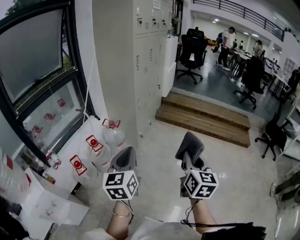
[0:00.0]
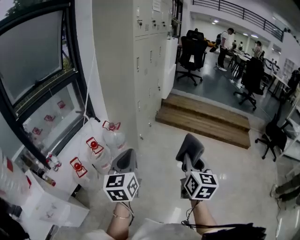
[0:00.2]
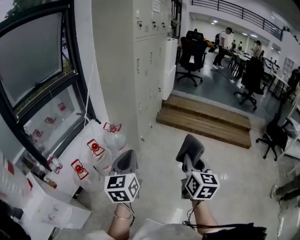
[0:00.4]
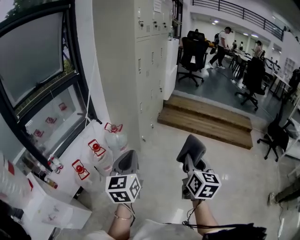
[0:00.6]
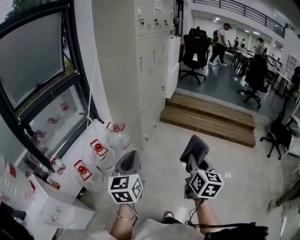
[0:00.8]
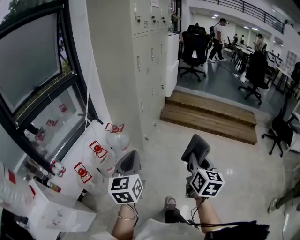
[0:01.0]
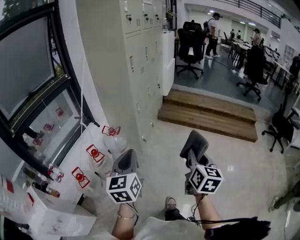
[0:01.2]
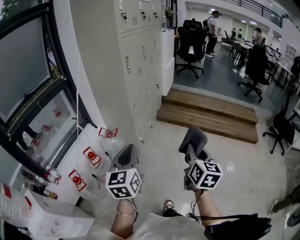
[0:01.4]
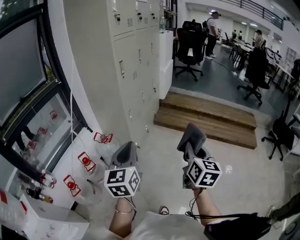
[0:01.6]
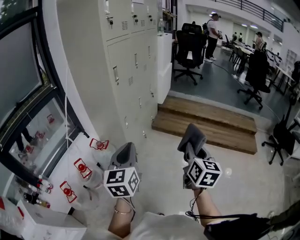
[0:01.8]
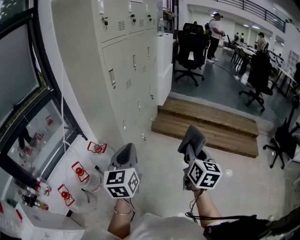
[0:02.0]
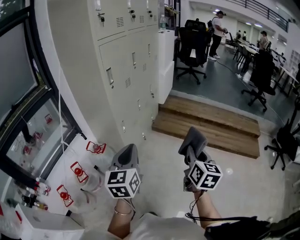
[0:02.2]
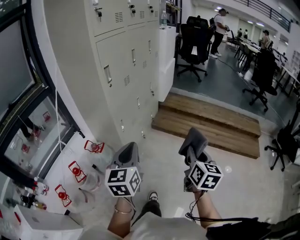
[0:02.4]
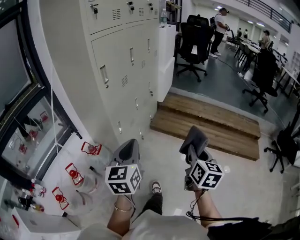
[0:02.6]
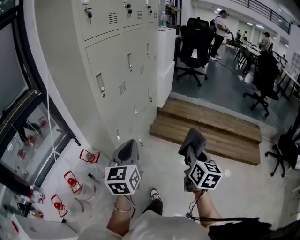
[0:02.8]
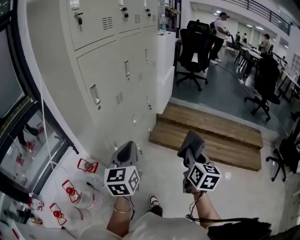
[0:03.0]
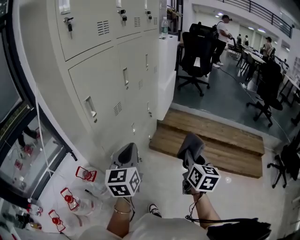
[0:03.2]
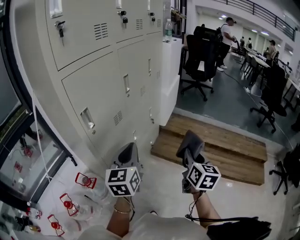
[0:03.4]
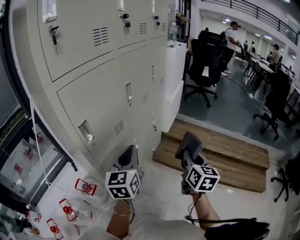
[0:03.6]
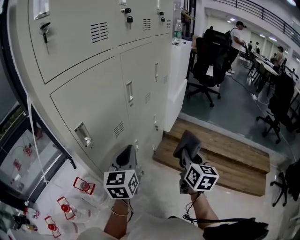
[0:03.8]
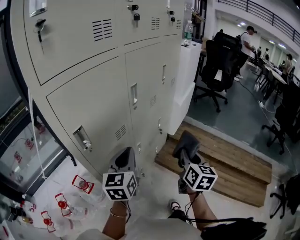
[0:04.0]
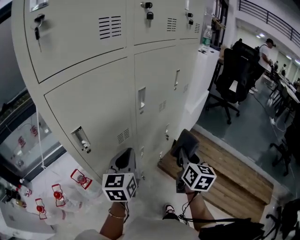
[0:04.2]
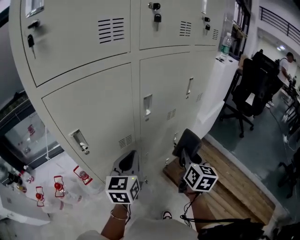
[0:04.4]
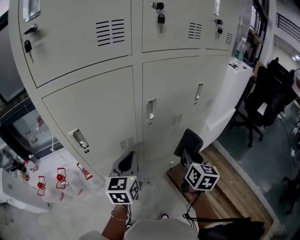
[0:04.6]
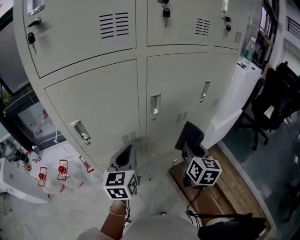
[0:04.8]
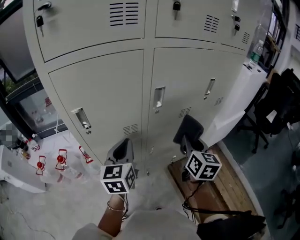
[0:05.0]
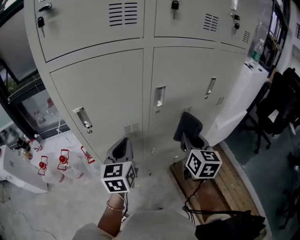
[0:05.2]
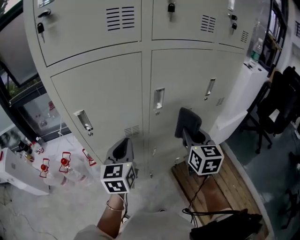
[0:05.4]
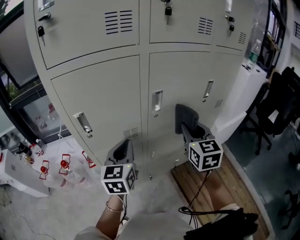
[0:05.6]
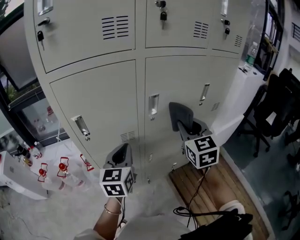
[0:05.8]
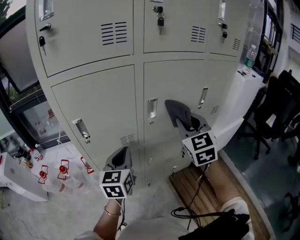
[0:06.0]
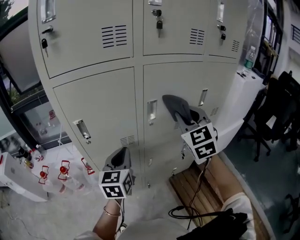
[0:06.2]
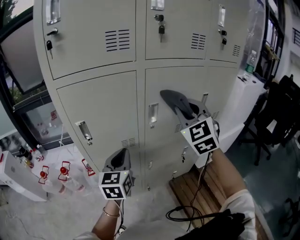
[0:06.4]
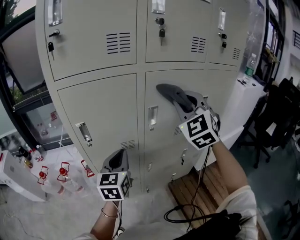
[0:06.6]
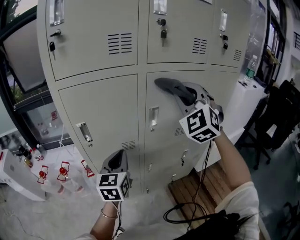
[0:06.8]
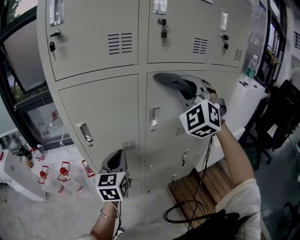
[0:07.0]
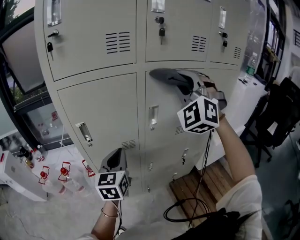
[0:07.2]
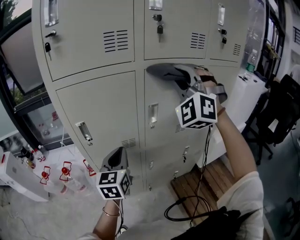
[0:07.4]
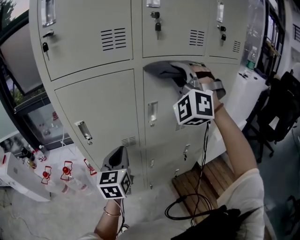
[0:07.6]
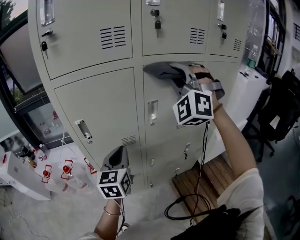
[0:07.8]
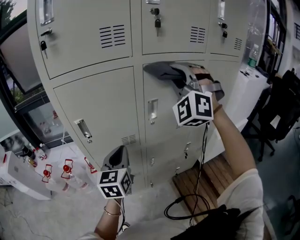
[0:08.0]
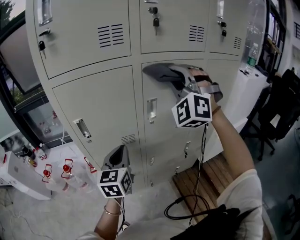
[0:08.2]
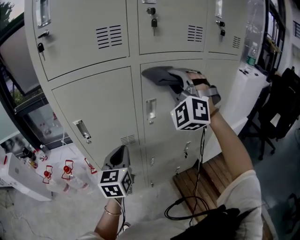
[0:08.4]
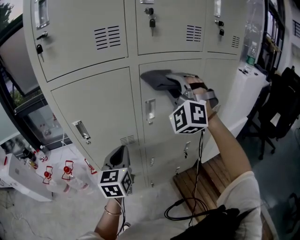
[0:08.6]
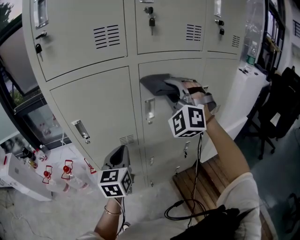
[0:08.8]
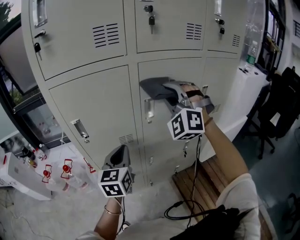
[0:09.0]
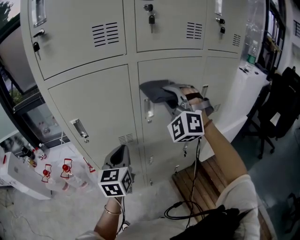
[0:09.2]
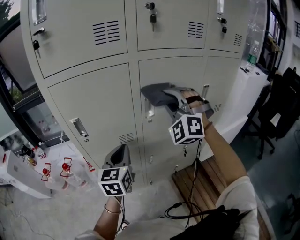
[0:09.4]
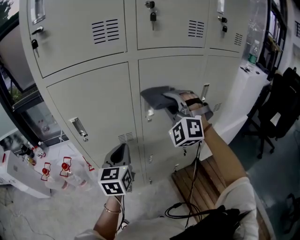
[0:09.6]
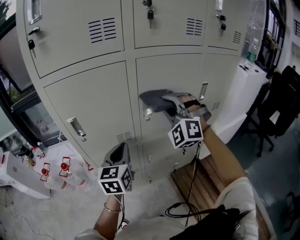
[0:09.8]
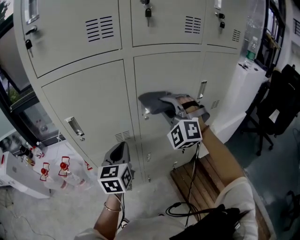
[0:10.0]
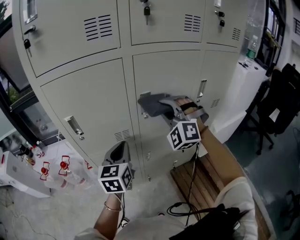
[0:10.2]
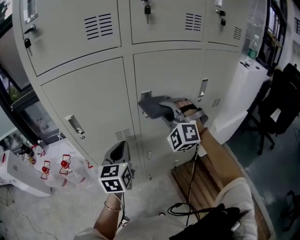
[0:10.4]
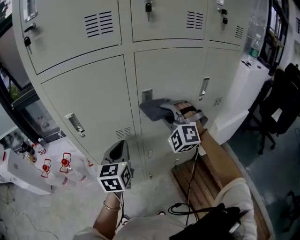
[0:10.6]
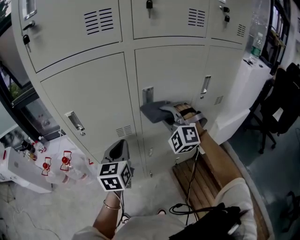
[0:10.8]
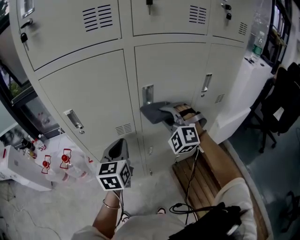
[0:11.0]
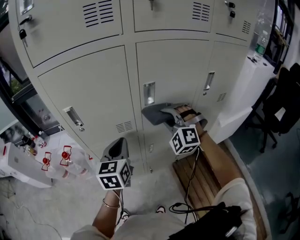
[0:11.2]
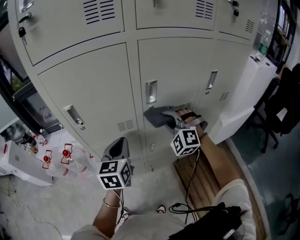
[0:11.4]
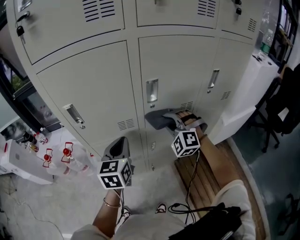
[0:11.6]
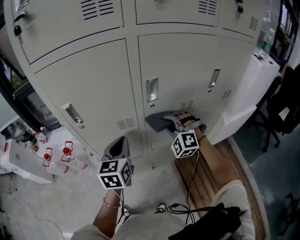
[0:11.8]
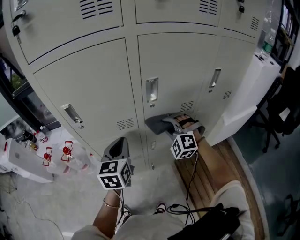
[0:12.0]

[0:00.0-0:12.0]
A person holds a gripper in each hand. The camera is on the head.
0.0 to 1.6 s: Both grippers travel together forward, about 25 cm.
1.6 to 3.0 s: Both grippers move forward, some 35 cm.
3.0 to 4.4 s: The left gripper changes place by some 30 cm, and swivels approximately 20 degrees, while the right gripper moves approximately 40 cm, and rotates roughly 30 degrees.
4.4 to 6.0 s: The right gripper heads upward and forward, covering roughly 15 cm, and rotates around the line of its fingers by roughly 40 degrees, counterclockwise from behind.
6.0 to 7.6 s: The right gripper shifts roughly 15 cm upward, and twists some 60 degrees counterclockwise, seen from behind.
7.6 to 9.0 s: The right gripper shifts about 10 cm downward.
9.0 to 10.4 s: The right gripper goes approximately 10 cm downward.
10.4 to 12.0 s: The right gripper goes roughly 20 cm downward.

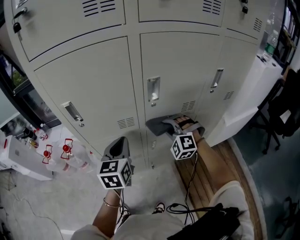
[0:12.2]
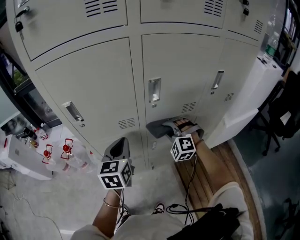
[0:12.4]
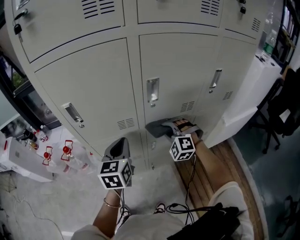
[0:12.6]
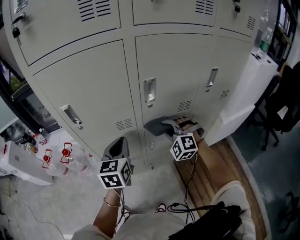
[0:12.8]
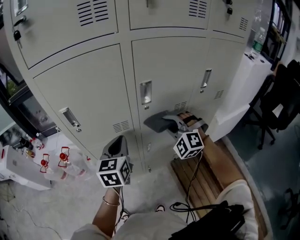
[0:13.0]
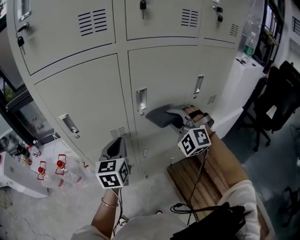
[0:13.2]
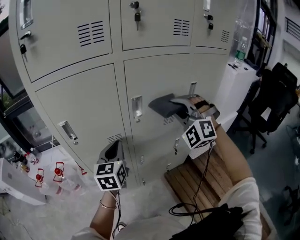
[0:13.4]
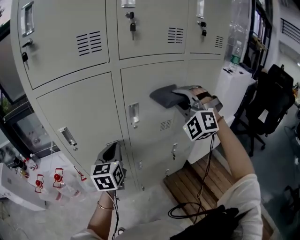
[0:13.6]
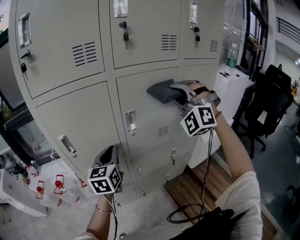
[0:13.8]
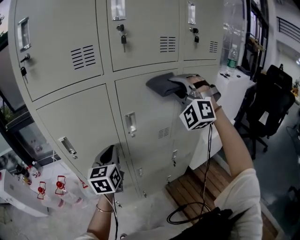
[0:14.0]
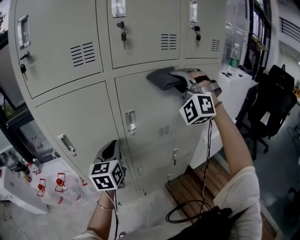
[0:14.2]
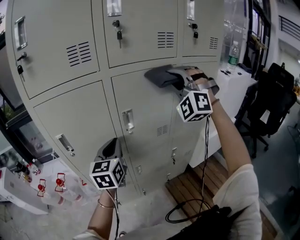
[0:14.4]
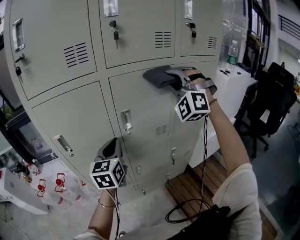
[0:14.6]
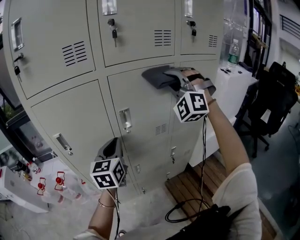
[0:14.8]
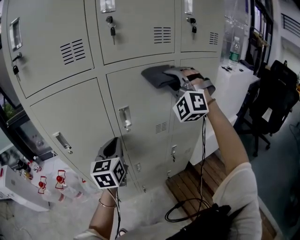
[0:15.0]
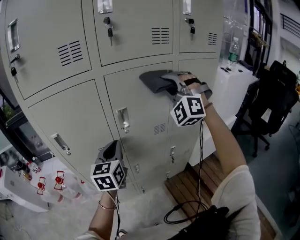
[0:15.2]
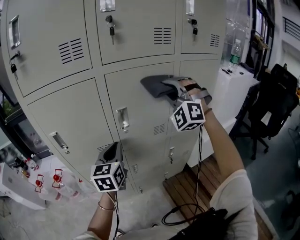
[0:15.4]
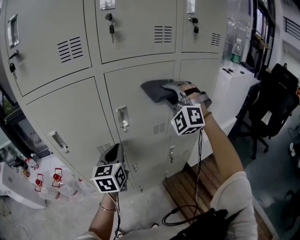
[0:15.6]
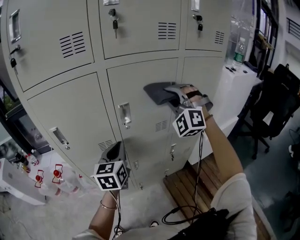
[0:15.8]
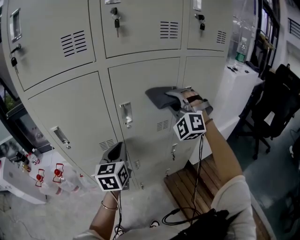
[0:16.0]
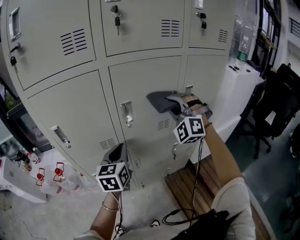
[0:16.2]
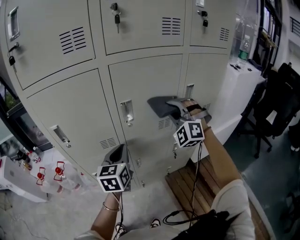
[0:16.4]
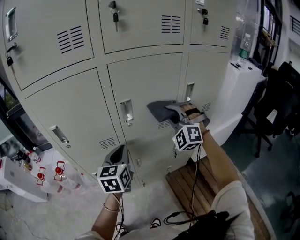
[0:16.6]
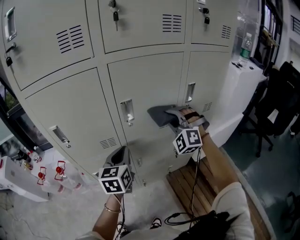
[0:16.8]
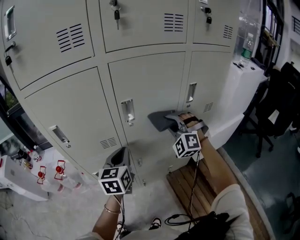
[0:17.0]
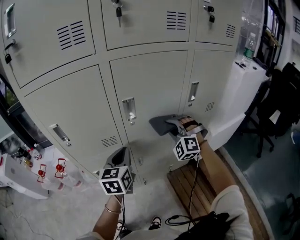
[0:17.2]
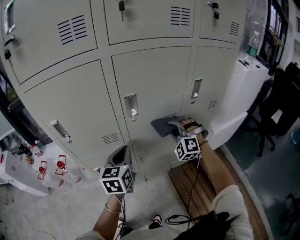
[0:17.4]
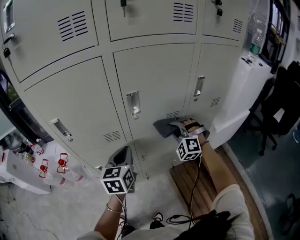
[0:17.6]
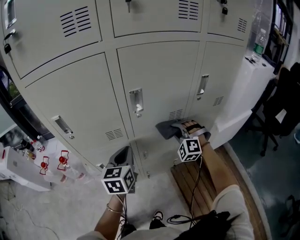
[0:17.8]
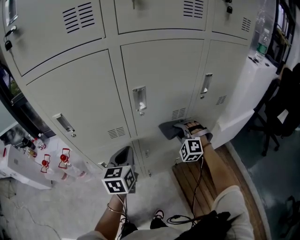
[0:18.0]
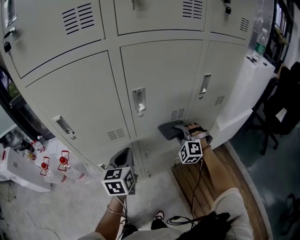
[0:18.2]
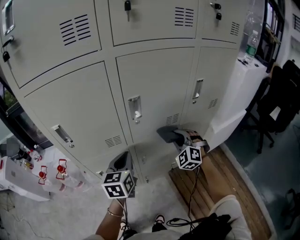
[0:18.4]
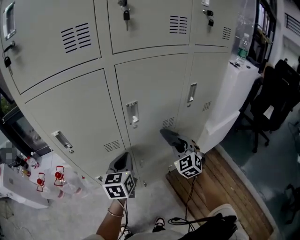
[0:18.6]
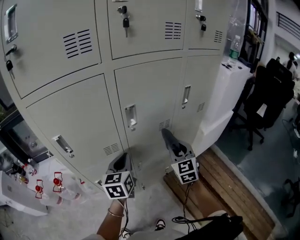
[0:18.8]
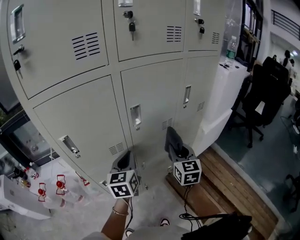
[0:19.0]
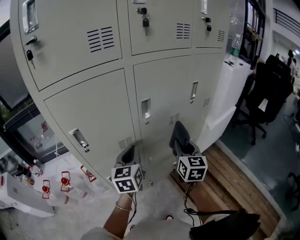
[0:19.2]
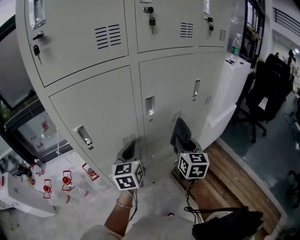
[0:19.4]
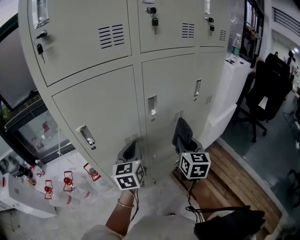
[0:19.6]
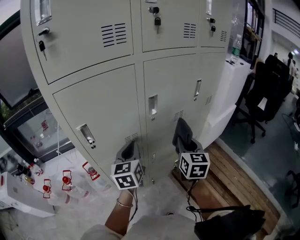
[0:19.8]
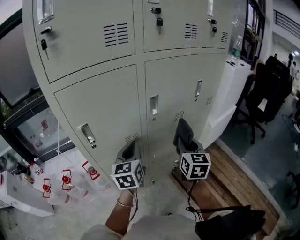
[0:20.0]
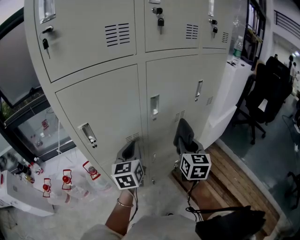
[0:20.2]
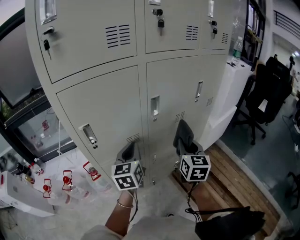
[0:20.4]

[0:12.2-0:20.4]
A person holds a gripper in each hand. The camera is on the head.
12.2 to 13.8 s: The right gripper moves upward, roughly 35 cm, and turns by some 30 degrees, while the left gripper is displaced upward by about 10 cm.
13.8 to 15.4 s: The right gripper changes place by approximately 5 cm. Meanwhile the left gripper goes some 5 cm to the right.
15.4 to 17.2 s: The right gripper moves downward, some 25 cm, and turns by approximately 20 degrees; the left gripper is displaced downward by roughly 5 cm.
17.2 to 18.8 s: The right gripper heads backward, covering some 10 cm, travels downward and back again, some 10 cm each way, and twists about 60 degrees clockwise, seen from behind.
18.8 to 20.4 s: The right gripper is displaced backward by approximately 5 cm, and swivels approximately 30 degrees; the left gripper moves to the left, about 5 cm.

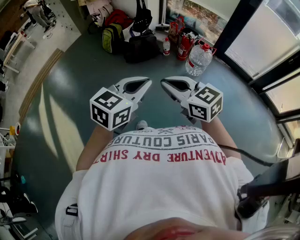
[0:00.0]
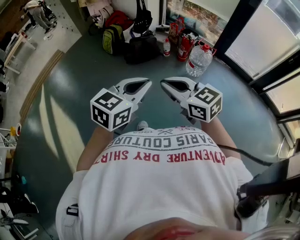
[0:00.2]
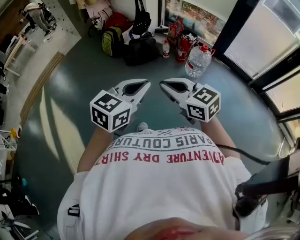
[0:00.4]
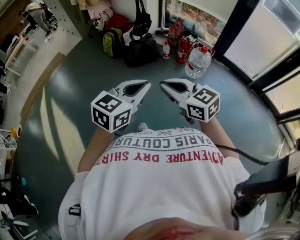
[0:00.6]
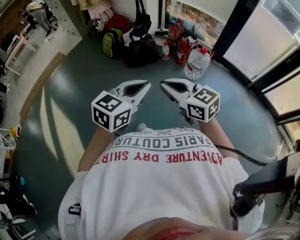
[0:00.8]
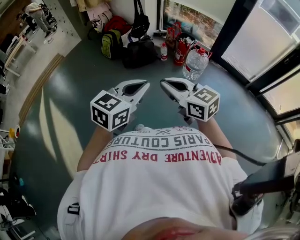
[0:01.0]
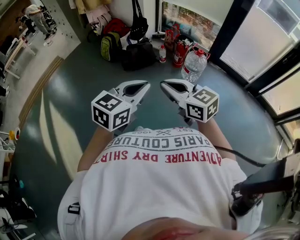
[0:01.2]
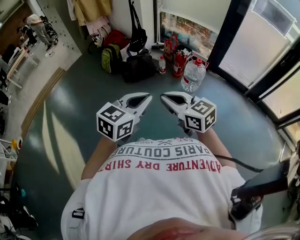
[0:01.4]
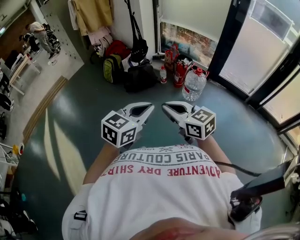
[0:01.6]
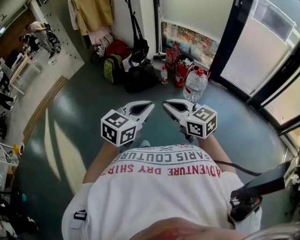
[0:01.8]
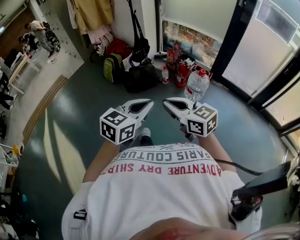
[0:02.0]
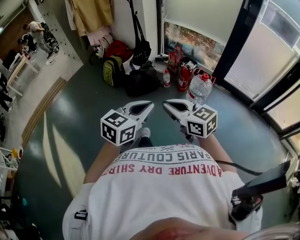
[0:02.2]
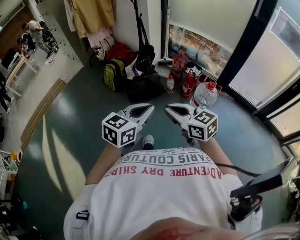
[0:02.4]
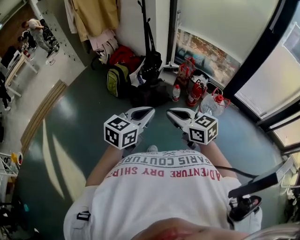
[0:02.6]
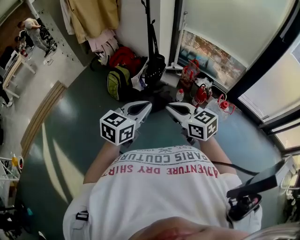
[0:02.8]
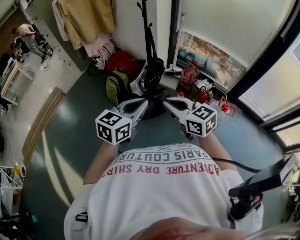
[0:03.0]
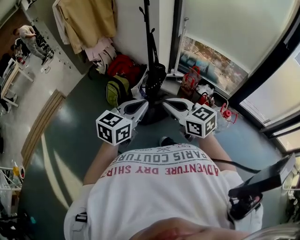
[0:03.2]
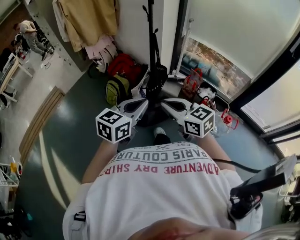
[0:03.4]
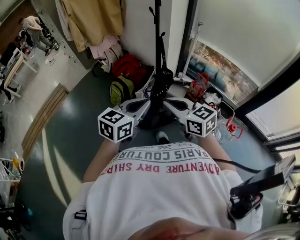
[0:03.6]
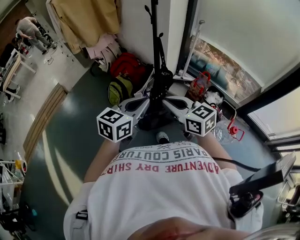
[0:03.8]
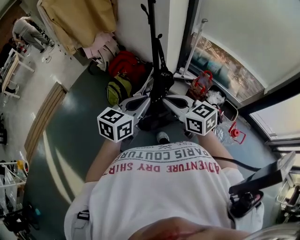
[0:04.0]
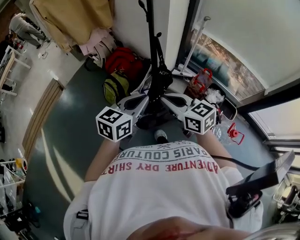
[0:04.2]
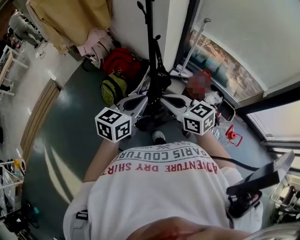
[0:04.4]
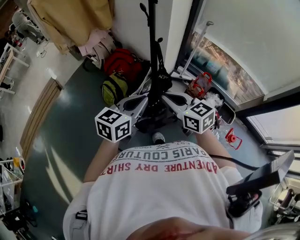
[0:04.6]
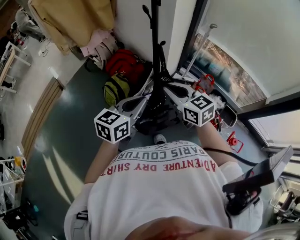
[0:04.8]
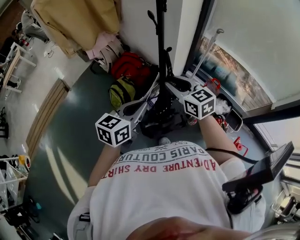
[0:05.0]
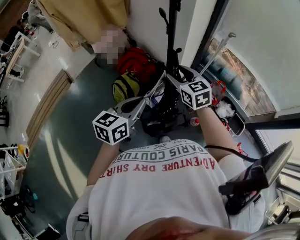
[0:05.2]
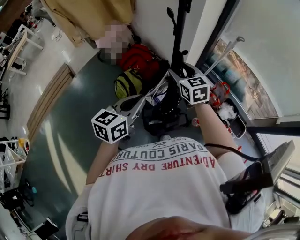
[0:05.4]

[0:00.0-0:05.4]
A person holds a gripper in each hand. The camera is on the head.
0.0 to 1.4 s: The grippers move only a little.
1.4 to 2.8 s: Both grippers are carried forward, some 50 cm.
2.8 to 4.0 s: The grippers both shift forward by roughly 35 cm.
4.0 to 5.4 s: The left gripper shifts about 15 cm forward and to the left. The right gripper heads forward, covering approximately 30 cm, changes its angle by about 20 degrees, and opens its fingers.
